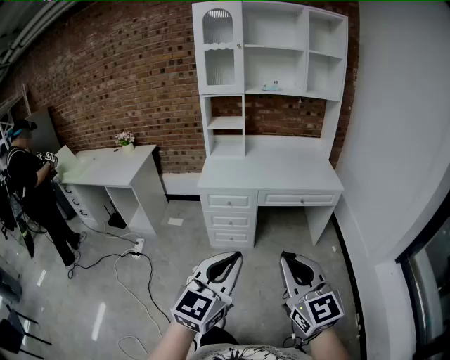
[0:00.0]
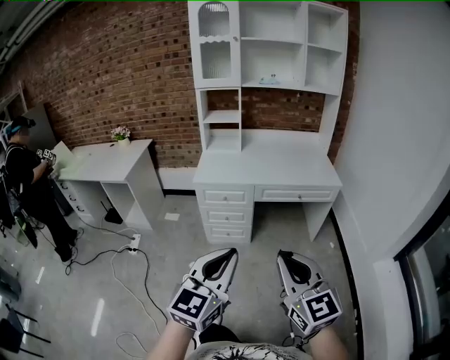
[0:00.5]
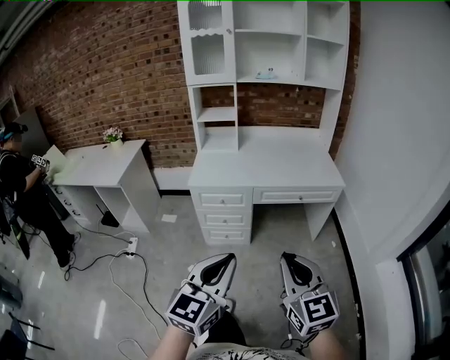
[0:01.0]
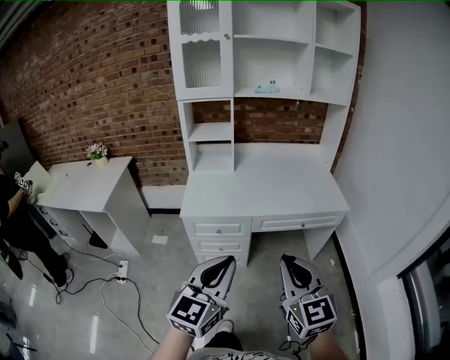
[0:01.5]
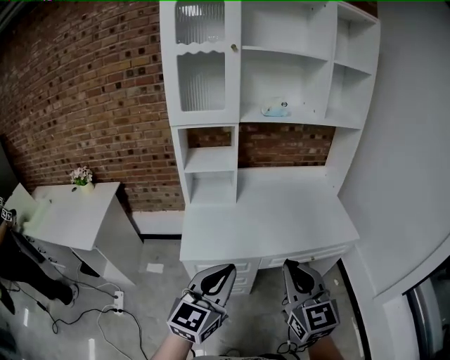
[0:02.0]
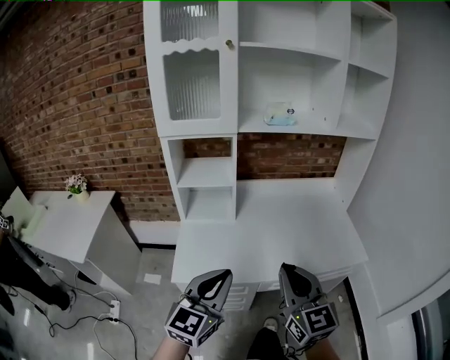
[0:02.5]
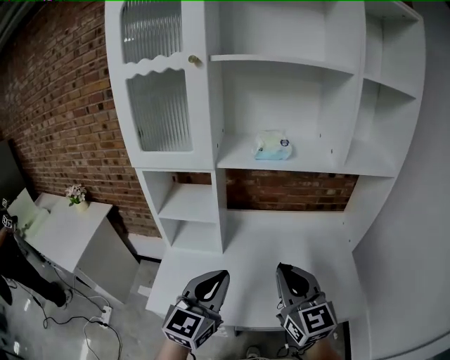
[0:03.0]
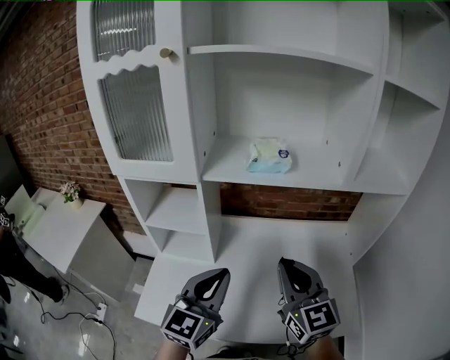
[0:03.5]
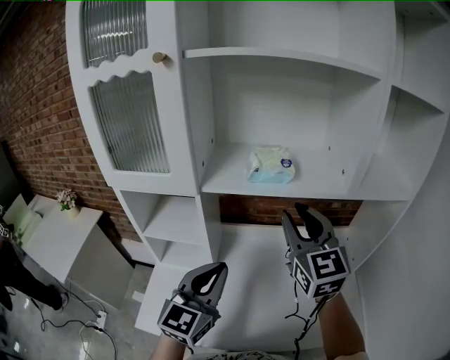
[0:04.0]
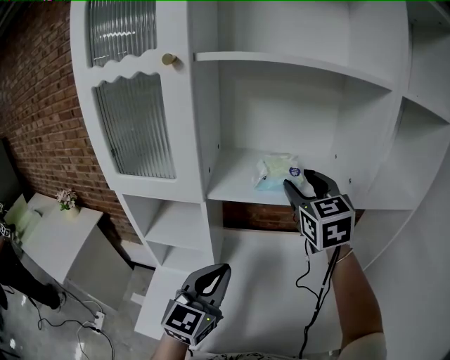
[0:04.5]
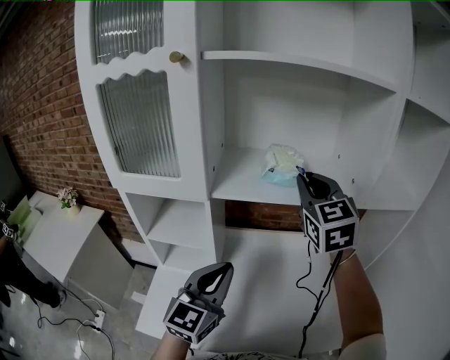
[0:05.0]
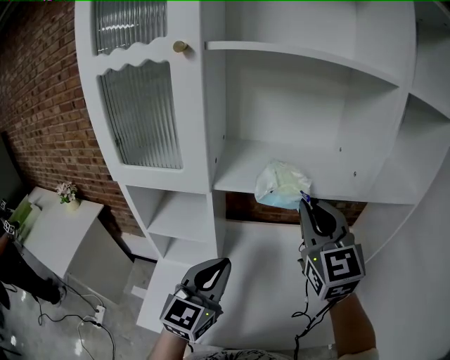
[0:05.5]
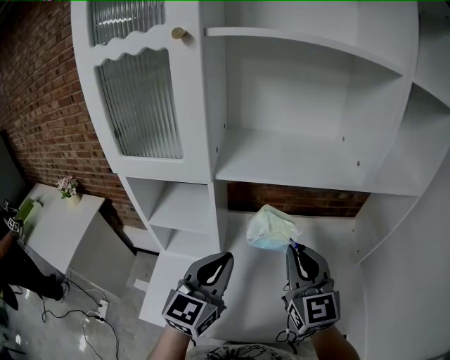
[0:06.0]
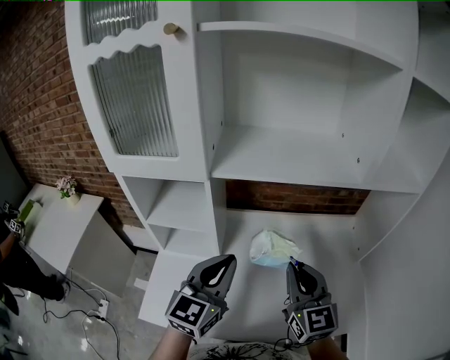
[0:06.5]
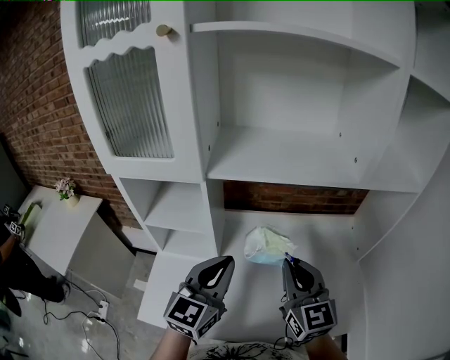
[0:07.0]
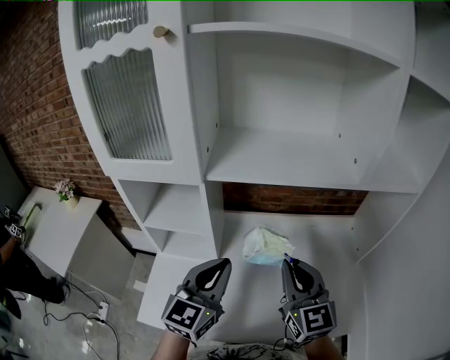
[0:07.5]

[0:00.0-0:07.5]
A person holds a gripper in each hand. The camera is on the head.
0:00.0 to 0:02.0: Both grippers are carried forward, some 50 cm.
0:02.0 to 0:04.0: The two grippers travel together, forward, about 50 cm. The right gripper opens.
0:04.0 to 0:05.5: The right gripper goes forward and returns, about 10 cm each way, and opens and closes again.
0:05.5 to 0:07.5: The right gripper moves downward and backward, approximately 15 cm.

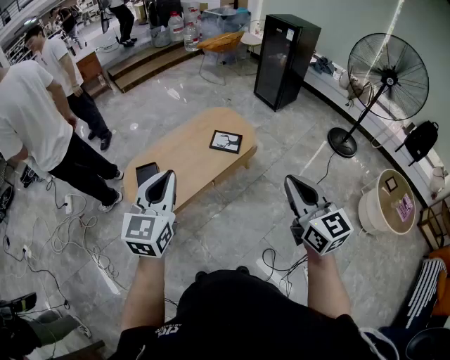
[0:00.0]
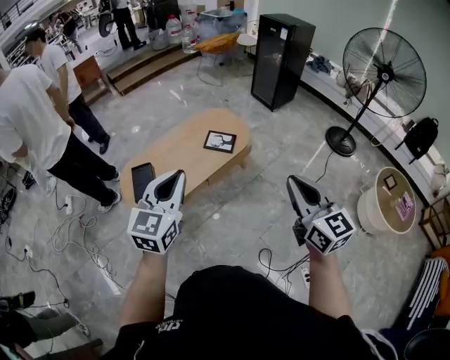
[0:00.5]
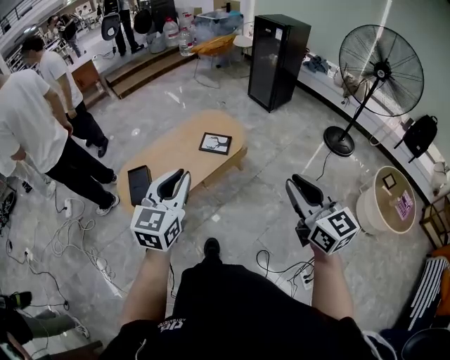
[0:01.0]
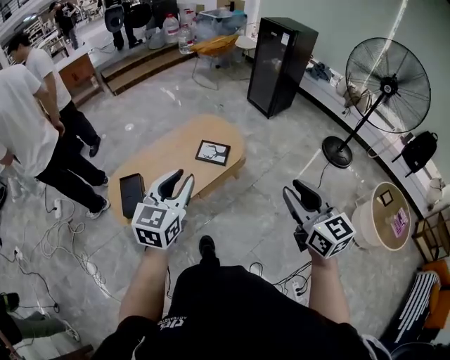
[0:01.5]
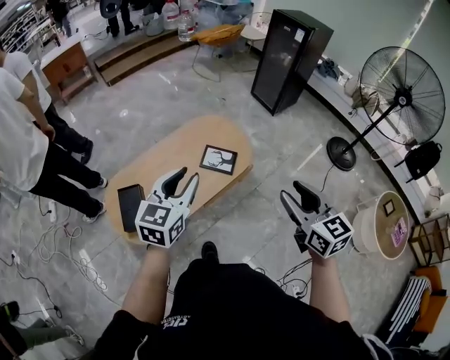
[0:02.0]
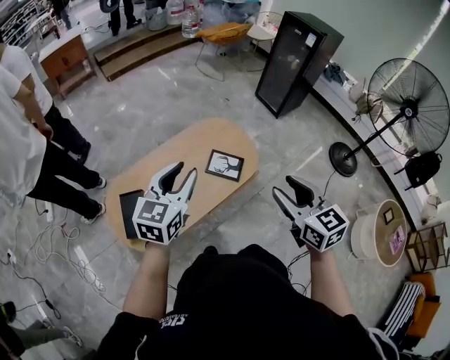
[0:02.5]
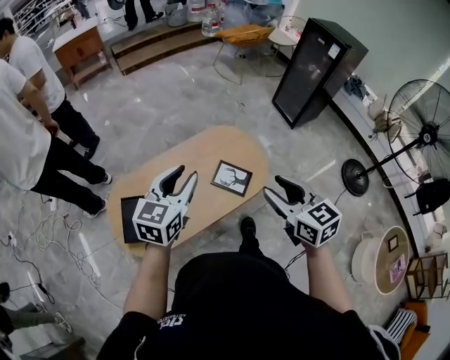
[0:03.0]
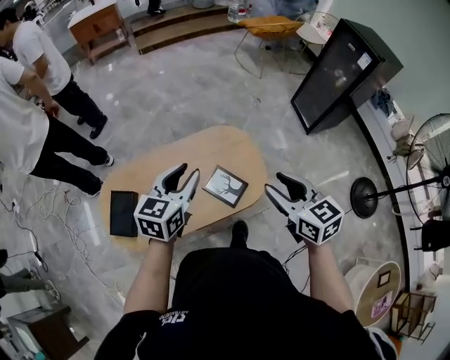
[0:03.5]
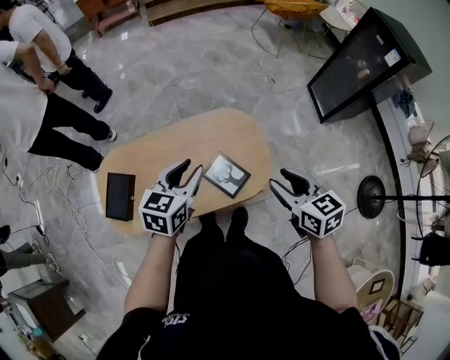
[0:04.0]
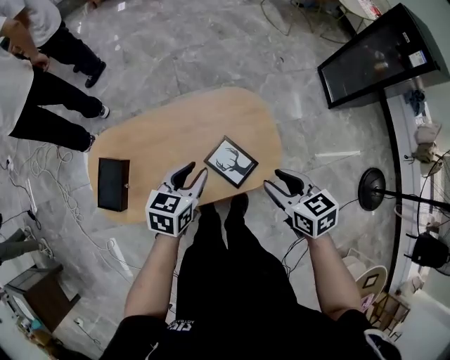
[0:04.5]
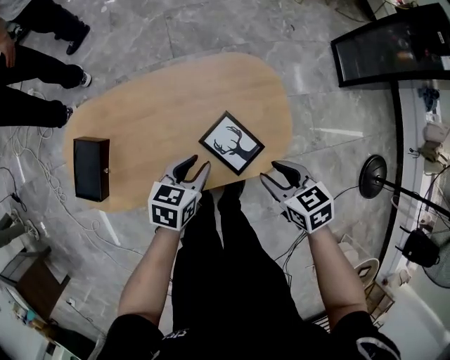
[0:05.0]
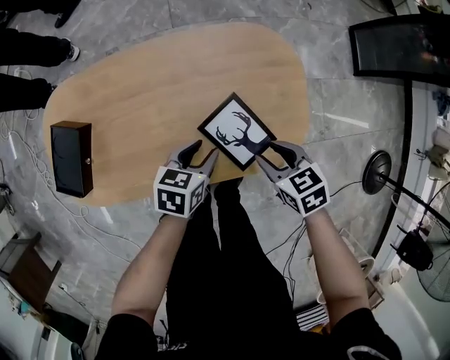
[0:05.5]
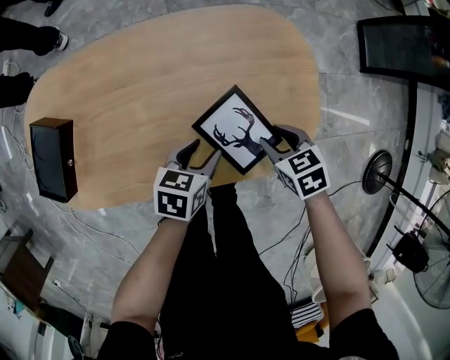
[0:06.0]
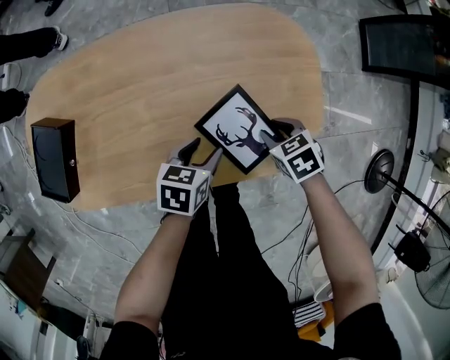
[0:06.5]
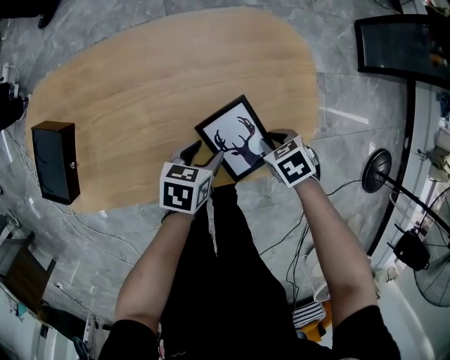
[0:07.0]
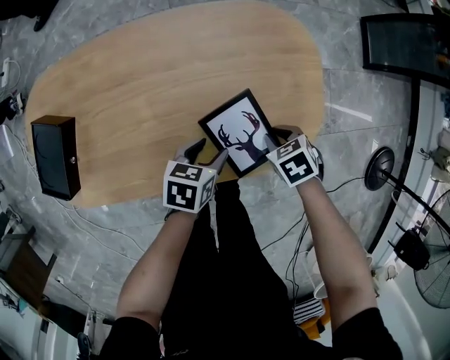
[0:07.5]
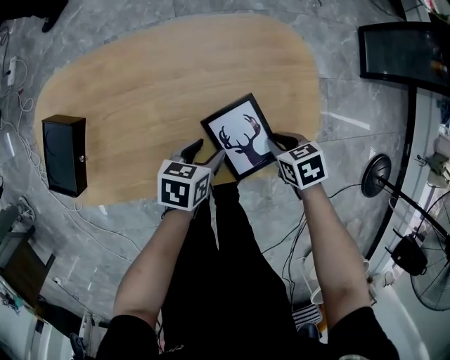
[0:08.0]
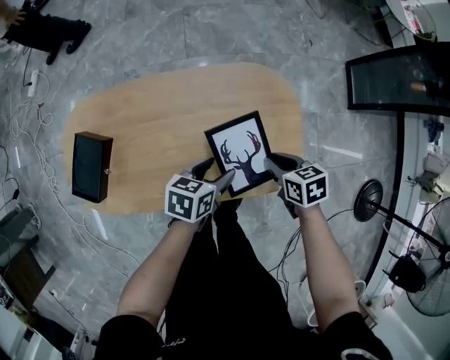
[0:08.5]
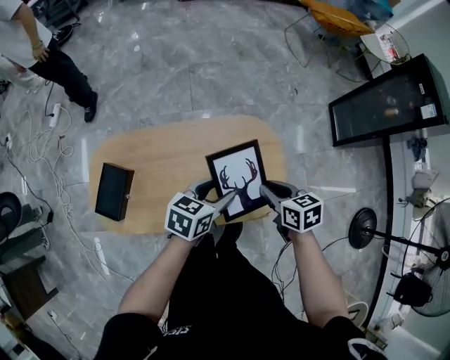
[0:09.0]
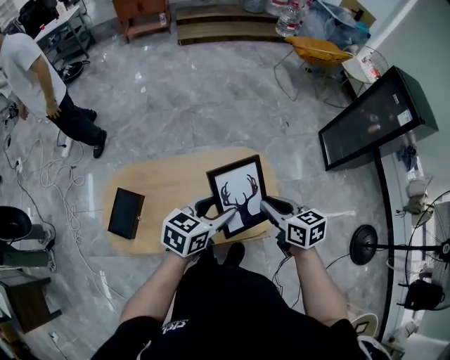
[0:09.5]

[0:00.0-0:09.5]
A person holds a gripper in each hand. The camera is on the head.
0:00.0 to 0:02.0: Both grippers move forward, approximately 25 cm. The right gripper opens; the left gripper opens up.
0:02.0 to 0:04.0: The left gripper moves about 35 cm, and turns by some 30 degrees. Meanwhile the right gripper ends up about 40 cm from where it was, and rotates about 40 degrees.
0:04.0 to 0:05.5: The two grippers go some 35 cm downward. The left gripper turns by approximately 30 degrees, while the right gripper changes its angle by some 30 degrees.
0:05.5 to 0:07.5: The left gripper goes some 10 cm downward. Meanwhile the right gripper heads downward, covering approximately 15 cm, changes its angle by approximately 20 degrees, and closes.
0:07.5 to 0:09.5: Both grippers travel together upward, about 50 cm. The right gripper points its fingers about 50 degrees further upward. The left gripper changes its angle by some 30 degrees.

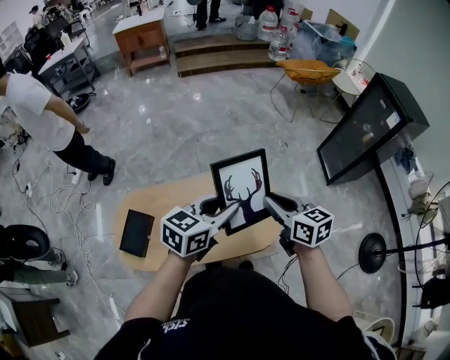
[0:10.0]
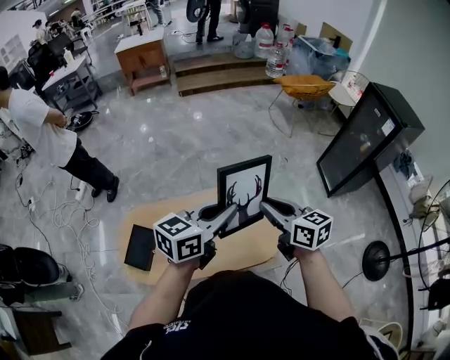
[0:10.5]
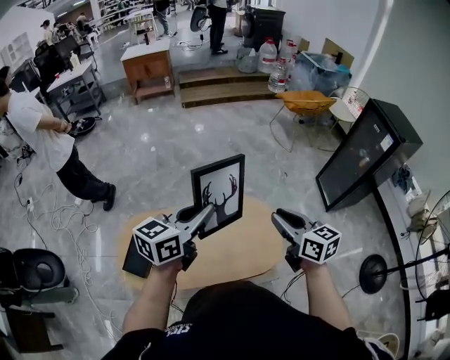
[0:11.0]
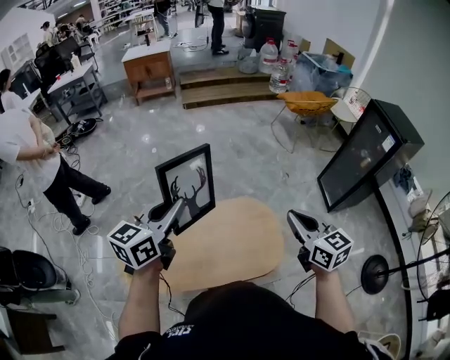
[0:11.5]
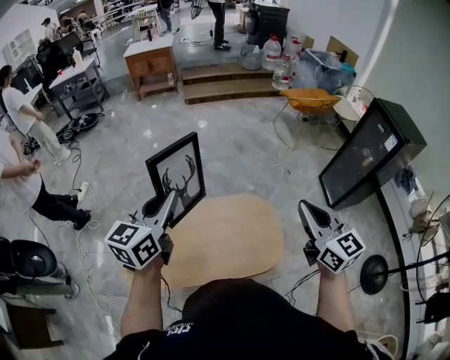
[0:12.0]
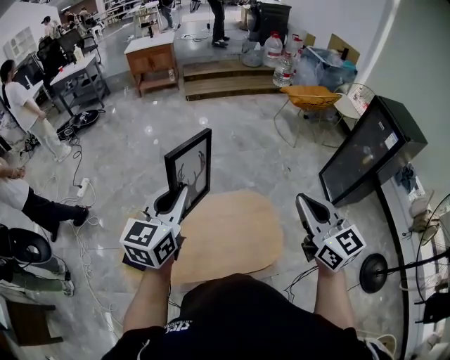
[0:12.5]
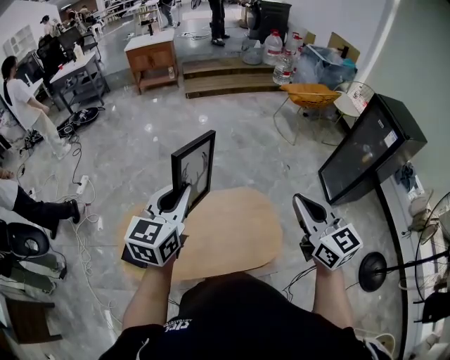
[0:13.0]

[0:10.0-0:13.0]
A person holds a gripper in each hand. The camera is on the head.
0:10.0 to 0:11.5: The right gripper shifts some 10 cm upward. Meanwhile the left gripper is displaced to the left and upward by approximately 20 cm, and changes its angle by approximately 20 degrees.
0:11.5 to 0:13.0: The right gripper goes approximately 5 cm upward.

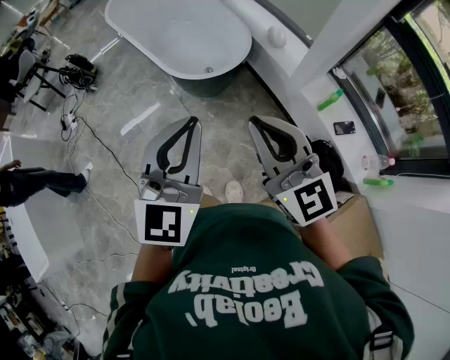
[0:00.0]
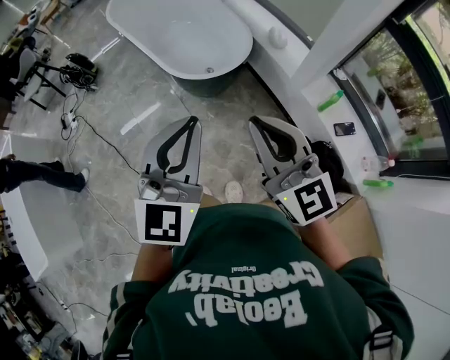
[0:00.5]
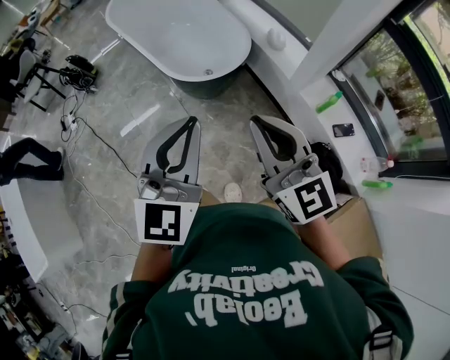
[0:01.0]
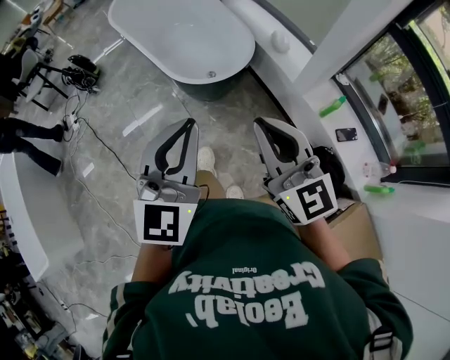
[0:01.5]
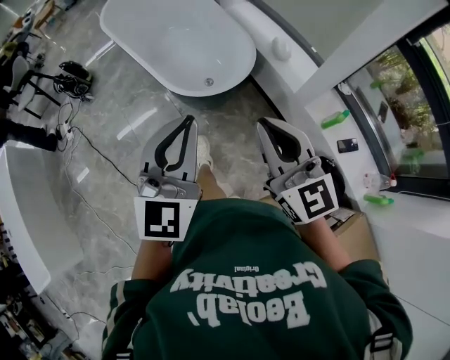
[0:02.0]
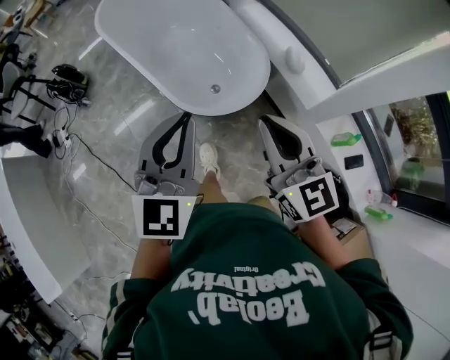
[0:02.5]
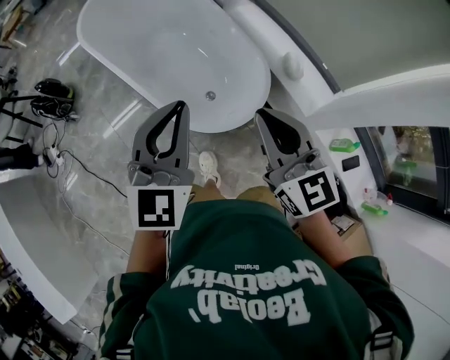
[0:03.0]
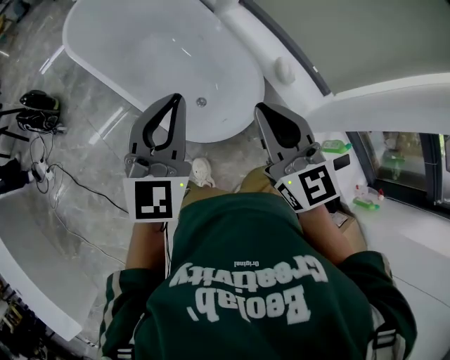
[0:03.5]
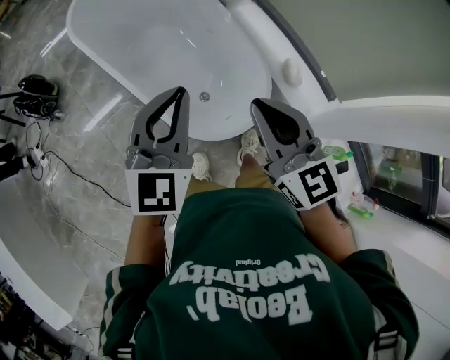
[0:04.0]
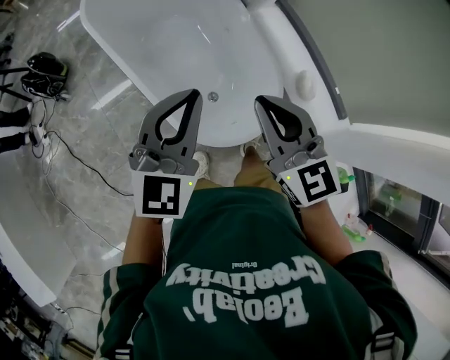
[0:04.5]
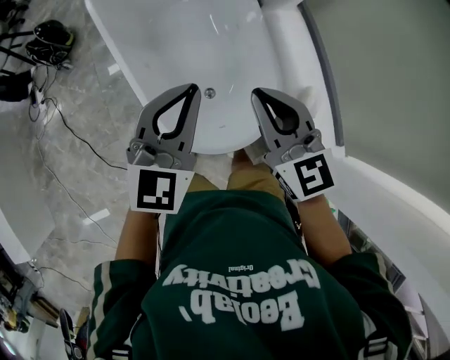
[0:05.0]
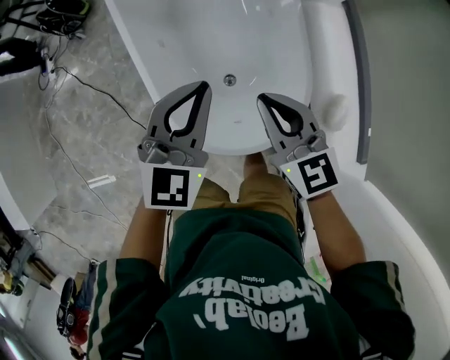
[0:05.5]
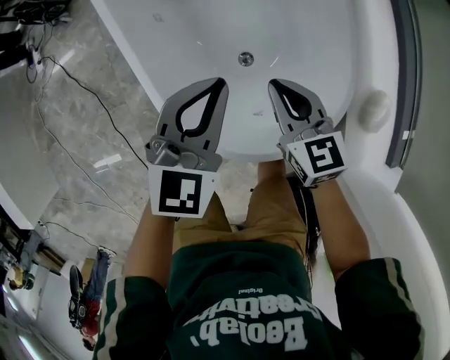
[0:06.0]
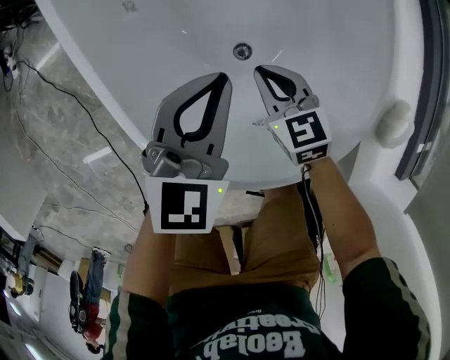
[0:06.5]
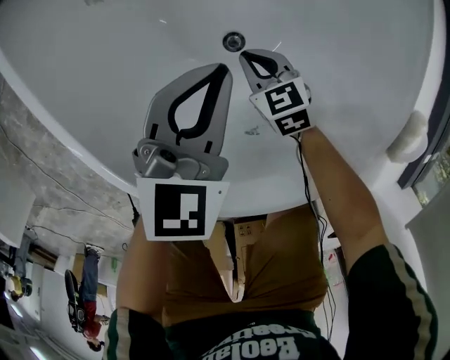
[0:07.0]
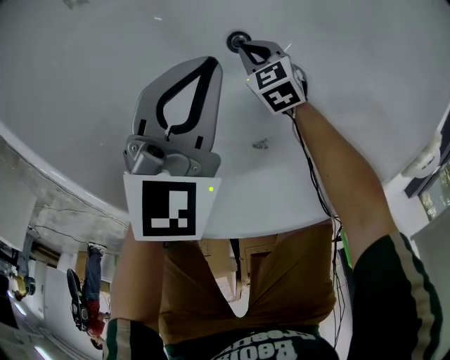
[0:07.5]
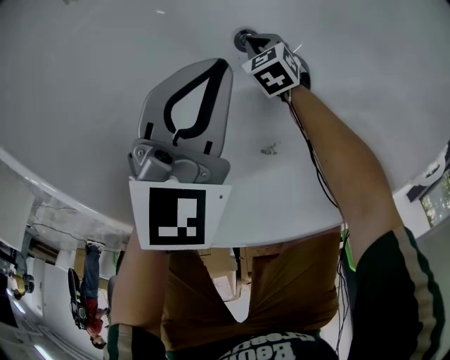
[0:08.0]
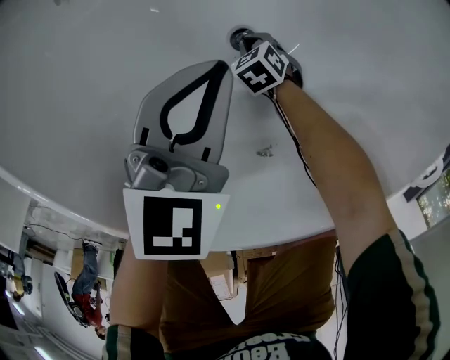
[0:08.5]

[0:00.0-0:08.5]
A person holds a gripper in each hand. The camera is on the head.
0:00.0 to 0:02.0: The two grippers go approximately 10 cm forward.
0:02.0 to 0:04.0: Both grippers are carried forward and to the left, some 40 cm.
0:04.0 to 0:06.5: Both grippers travel together downward, roughly 50 cm. The left gripper swivels approximately 30 degrees, while the right gripper tilts its fingers some 30 degrees downward.
0:06.5 to 0:08.5: The left gripper goes approximately 15 cm downward. Meanwhile the right gripper is displaced downward by some 30 cm, and tips its fingers downward by roughly 30 degrees.
